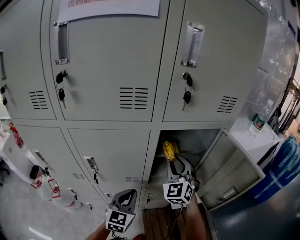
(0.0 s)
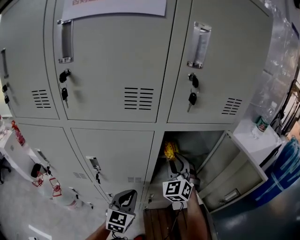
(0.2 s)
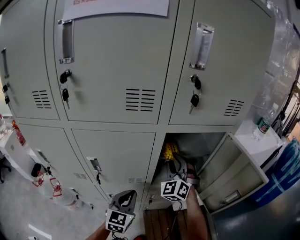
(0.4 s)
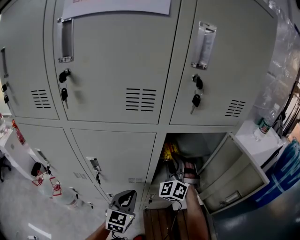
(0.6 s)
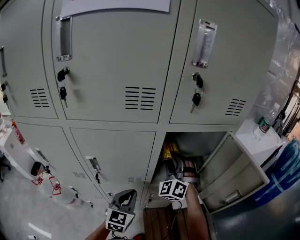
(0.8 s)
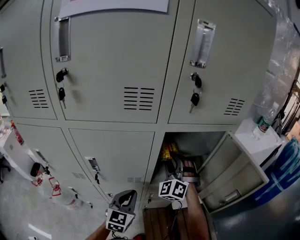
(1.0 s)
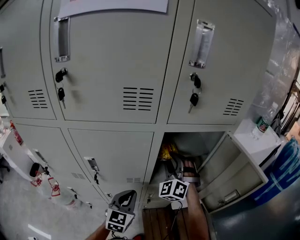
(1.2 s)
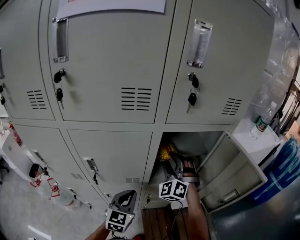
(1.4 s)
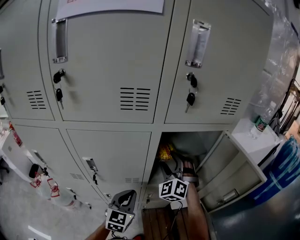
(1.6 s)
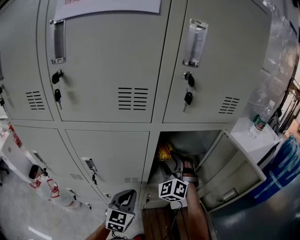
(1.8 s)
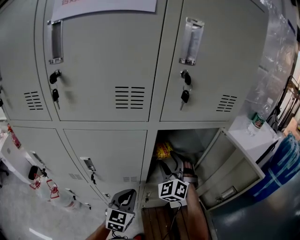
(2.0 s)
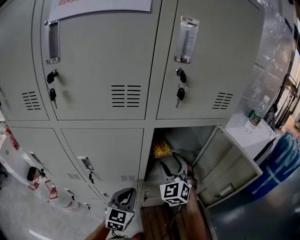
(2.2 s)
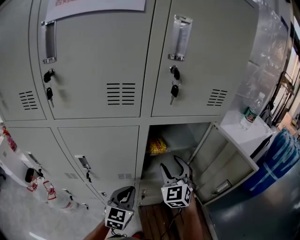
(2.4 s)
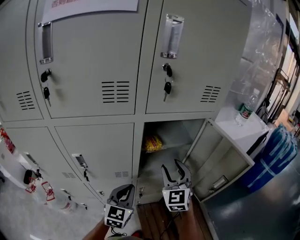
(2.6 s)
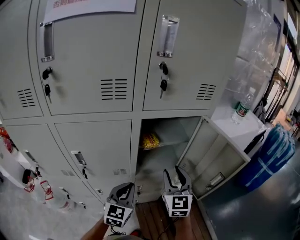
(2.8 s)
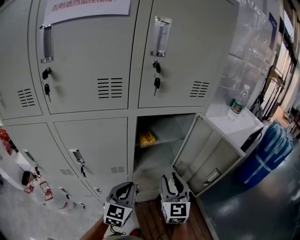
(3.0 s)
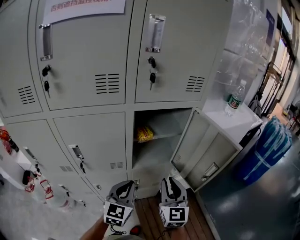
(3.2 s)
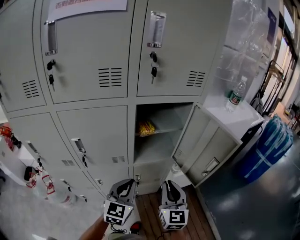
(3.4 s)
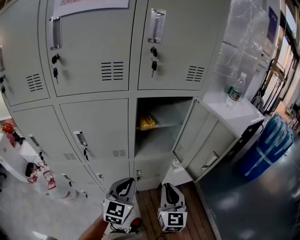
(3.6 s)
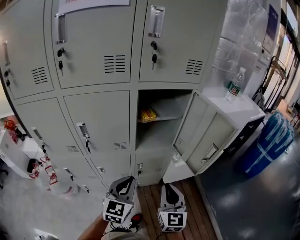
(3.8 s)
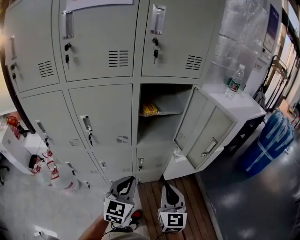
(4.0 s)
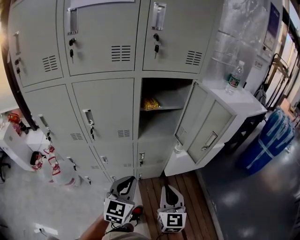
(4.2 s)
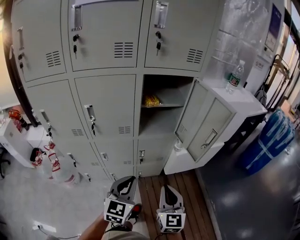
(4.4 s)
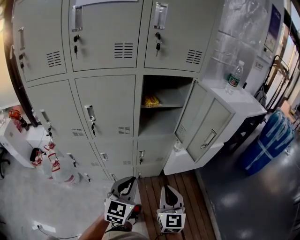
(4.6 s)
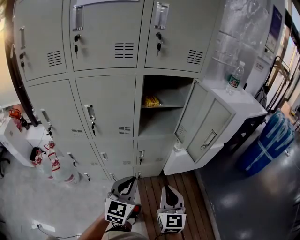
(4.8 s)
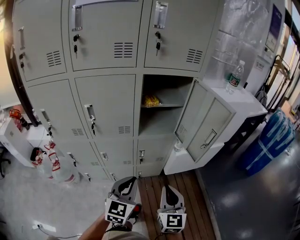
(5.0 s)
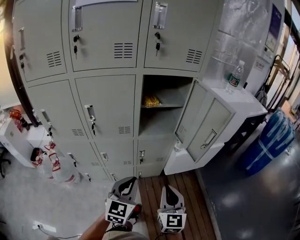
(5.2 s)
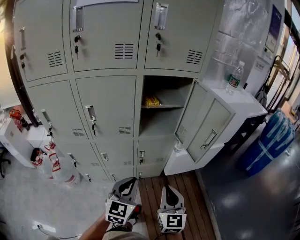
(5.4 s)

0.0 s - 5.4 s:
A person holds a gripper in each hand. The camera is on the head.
0.0 s - 1.4 s: The right gripper rotates about 20 degrees.
1.4 s - 2.8 s: The right gripper goes some 15 cm backward and to the right, and twists approximately 50 degrees clockwise, seen from behind. Meanwhile the left gripper shifts by approximately 5 cm.
2.8 s - 4.0 s: The two grippers go approximately 20 cm backward. The right gripper closes its fingers.
4.0 s - 5.4 s: The left gripper heads backward, covering roughly 5 cm. Meanwhile the right gripper changes place by roughly 5 cm.

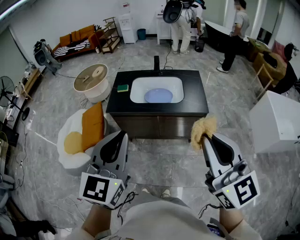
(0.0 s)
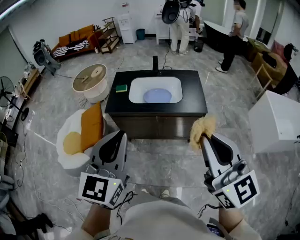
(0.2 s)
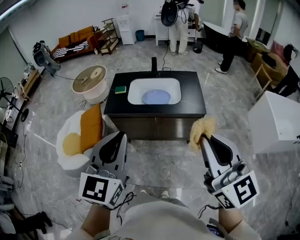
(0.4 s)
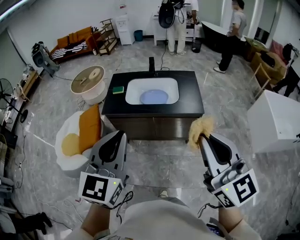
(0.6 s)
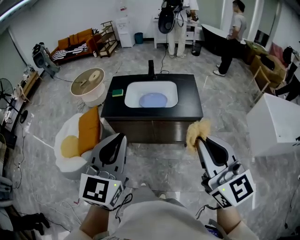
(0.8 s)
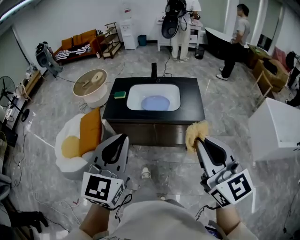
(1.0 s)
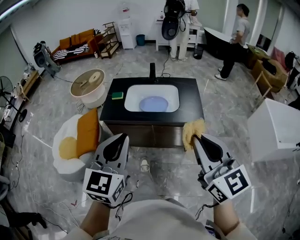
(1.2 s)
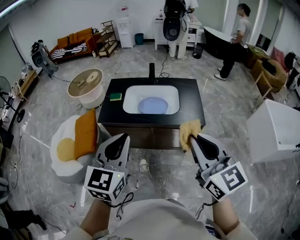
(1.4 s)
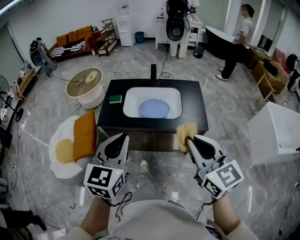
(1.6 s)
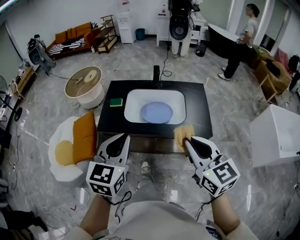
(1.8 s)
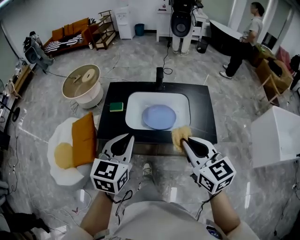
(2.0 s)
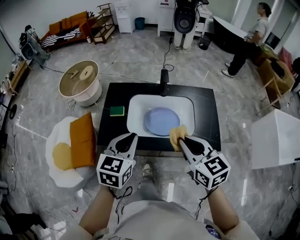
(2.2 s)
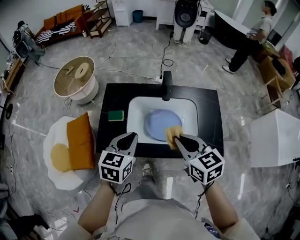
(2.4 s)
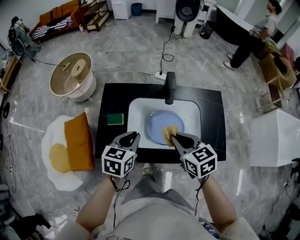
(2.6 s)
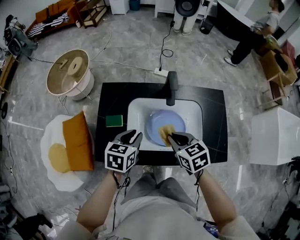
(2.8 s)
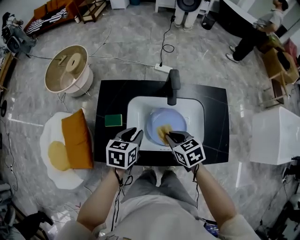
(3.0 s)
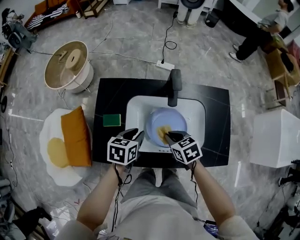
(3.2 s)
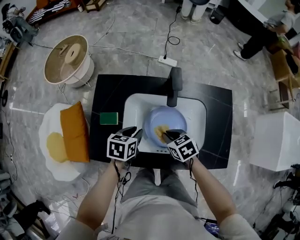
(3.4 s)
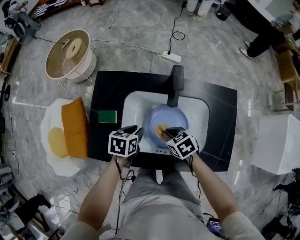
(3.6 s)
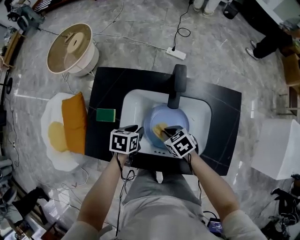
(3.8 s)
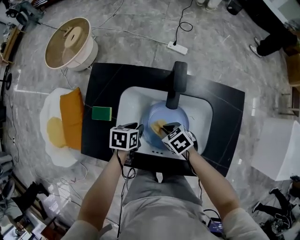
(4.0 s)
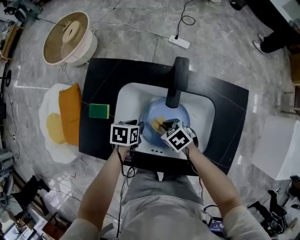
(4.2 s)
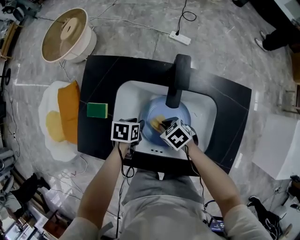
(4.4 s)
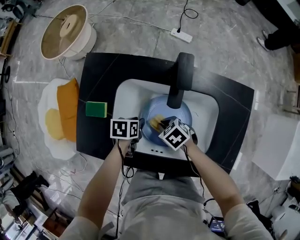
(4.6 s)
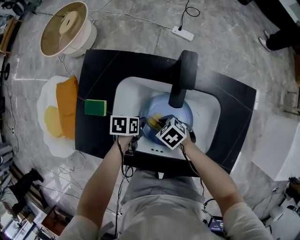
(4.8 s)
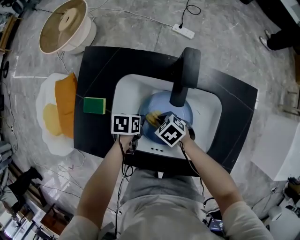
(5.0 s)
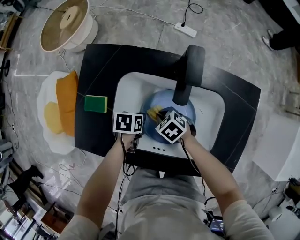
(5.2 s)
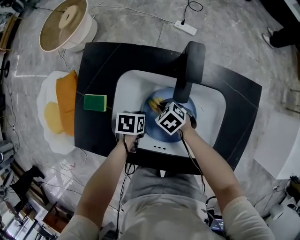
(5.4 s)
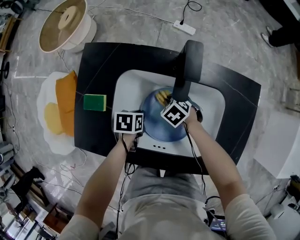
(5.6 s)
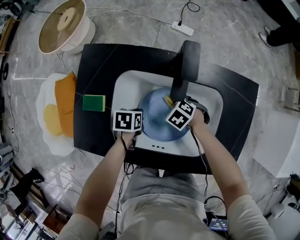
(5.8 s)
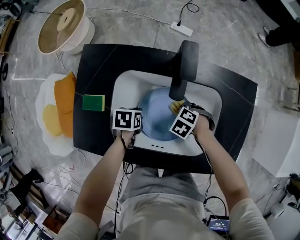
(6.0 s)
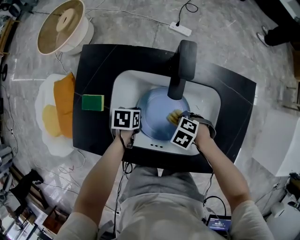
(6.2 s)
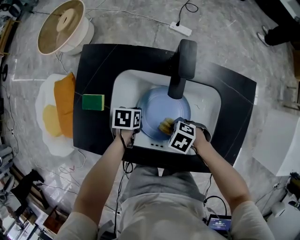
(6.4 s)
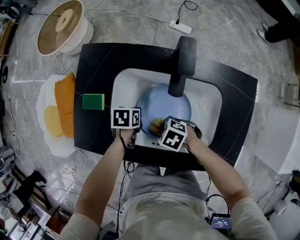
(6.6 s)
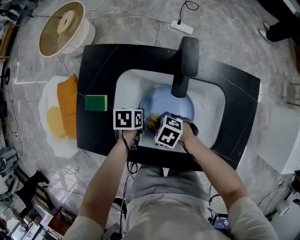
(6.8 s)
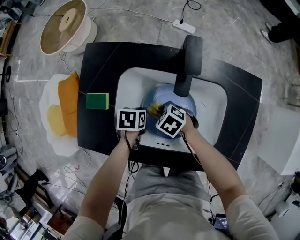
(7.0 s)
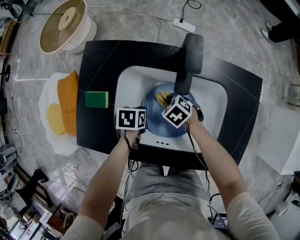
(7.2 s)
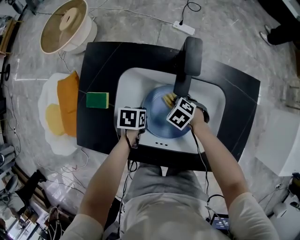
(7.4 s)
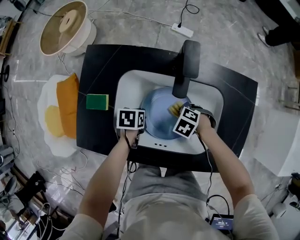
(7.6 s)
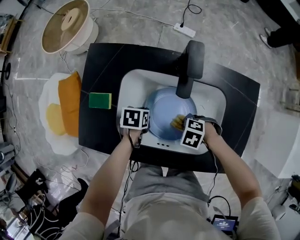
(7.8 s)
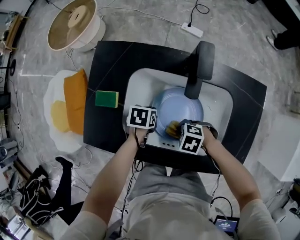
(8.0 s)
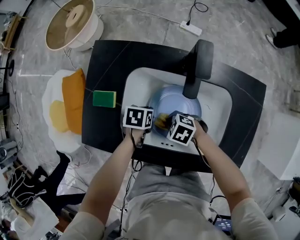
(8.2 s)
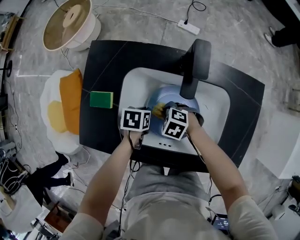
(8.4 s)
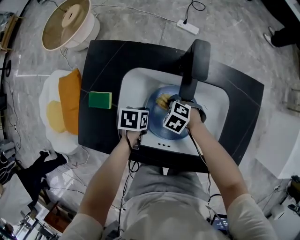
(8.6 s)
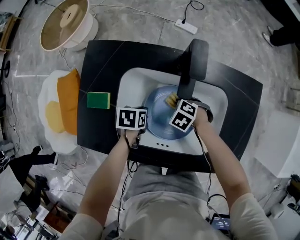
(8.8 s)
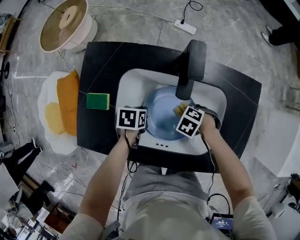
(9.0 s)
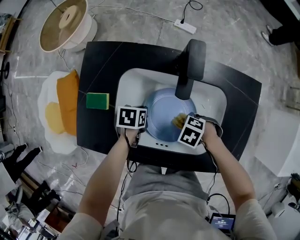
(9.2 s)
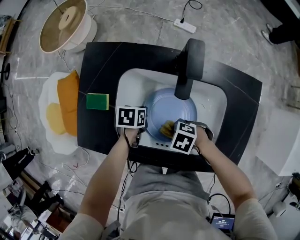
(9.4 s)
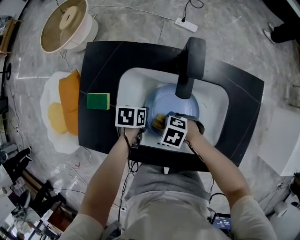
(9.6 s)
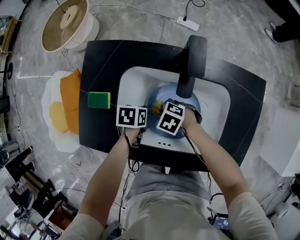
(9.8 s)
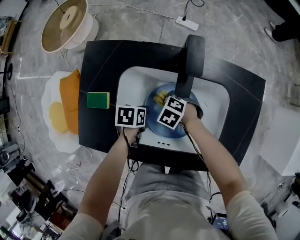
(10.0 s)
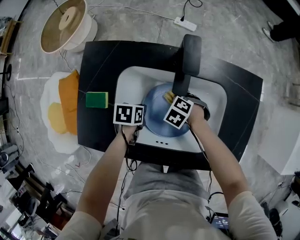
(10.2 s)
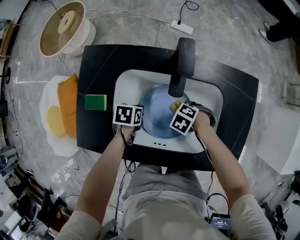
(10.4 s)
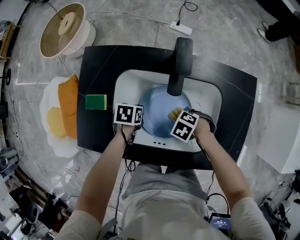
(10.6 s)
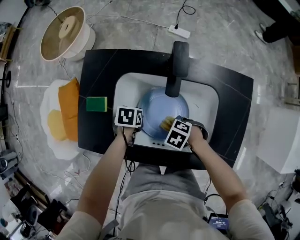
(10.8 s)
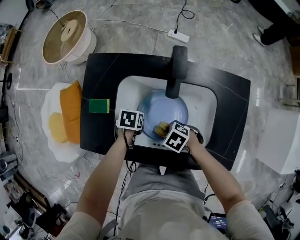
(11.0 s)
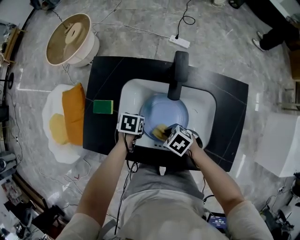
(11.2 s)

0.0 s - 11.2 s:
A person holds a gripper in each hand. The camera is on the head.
0.0 s - 1.6 s: Both grippers move forward and downward, about 20 cm.
1.6 s - 3.2 s: The grippers both shift forward and downward by about 50 cm. The left gripper tilts its fingers some 30 degrees downward, and opens its fingers. Meanwhile the right gripper points its fingers some 50 degrees further downward.
3.2 s - 4.8 s: Both grippers travel together downward, about 20 cm. The left gripper swivels about 30 degrees, while the right gripper rotates approximately 30 degrees.
4.8 s - 6.4 s: The right gripper changes place by approximately 10 cm; the left gripper closes up.
9.6 s - 11.2 s: The right gripper moves upward, about 5 cm.

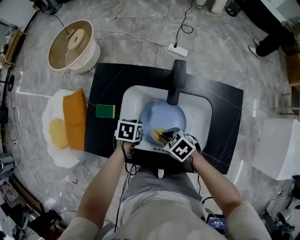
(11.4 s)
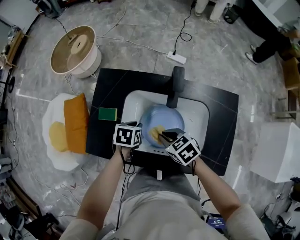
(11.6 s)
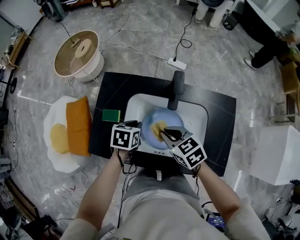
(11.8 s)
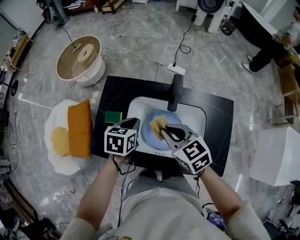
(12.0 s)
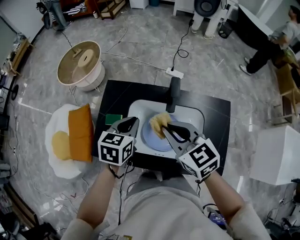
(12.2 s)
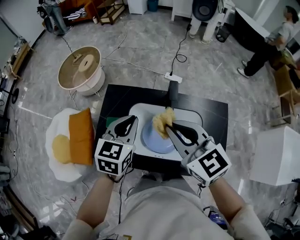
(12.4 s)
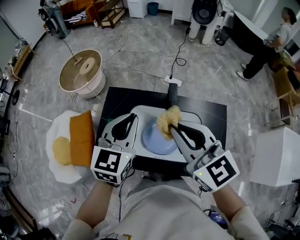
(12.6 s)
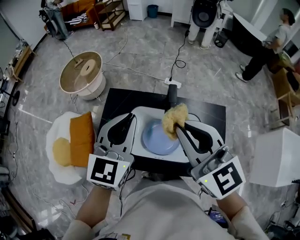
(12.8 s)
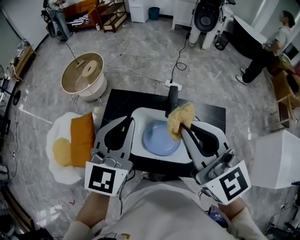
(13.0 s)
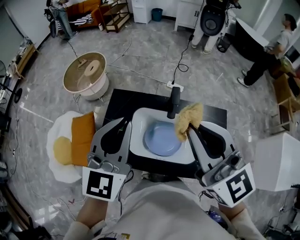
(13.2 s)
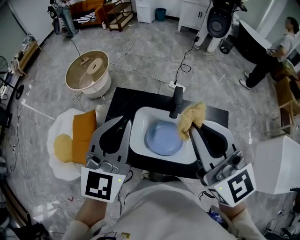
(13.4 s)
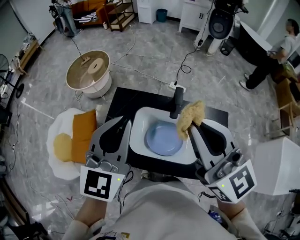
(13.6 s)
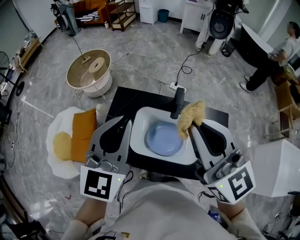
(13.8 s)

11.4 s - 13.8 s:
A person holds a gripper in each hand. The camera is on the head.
11.4 s - 12.6 s: Both grippers move upward, roughly 40 cm. The left gripper tilts its fingers approximately 50 degrees upward. The right gripper points its fingers some 50 degrees further upward.
12.6 s - 13.8 s: The grippers both shift upward by approximately 10 cm.

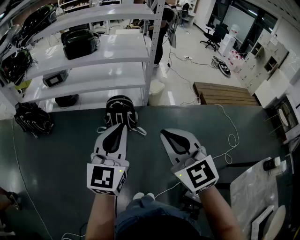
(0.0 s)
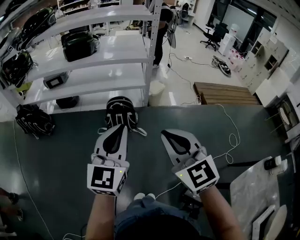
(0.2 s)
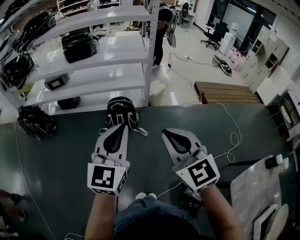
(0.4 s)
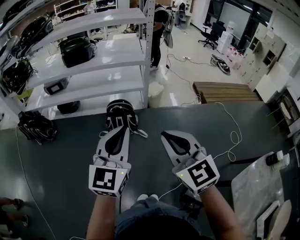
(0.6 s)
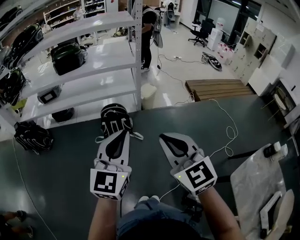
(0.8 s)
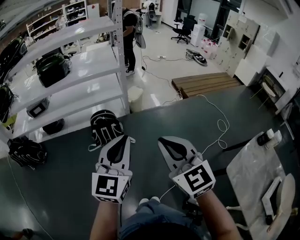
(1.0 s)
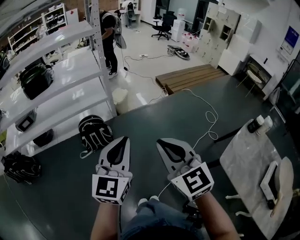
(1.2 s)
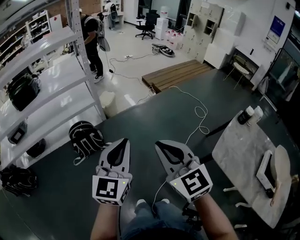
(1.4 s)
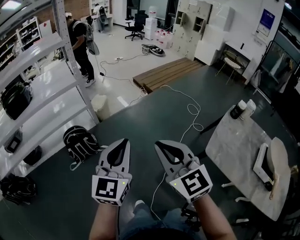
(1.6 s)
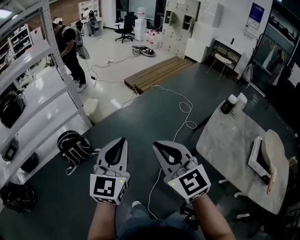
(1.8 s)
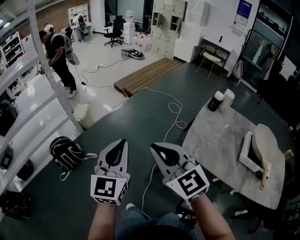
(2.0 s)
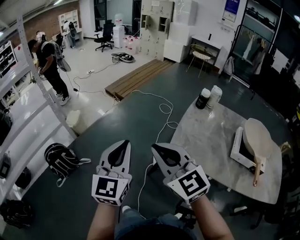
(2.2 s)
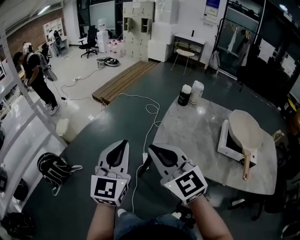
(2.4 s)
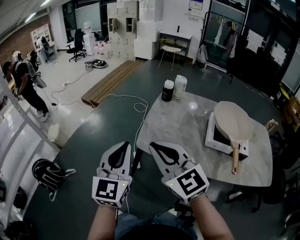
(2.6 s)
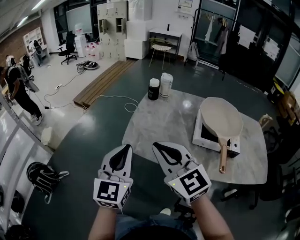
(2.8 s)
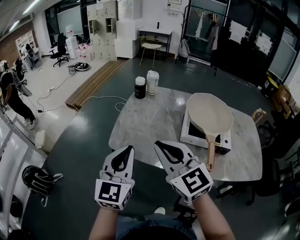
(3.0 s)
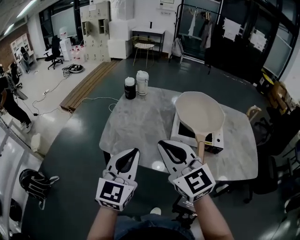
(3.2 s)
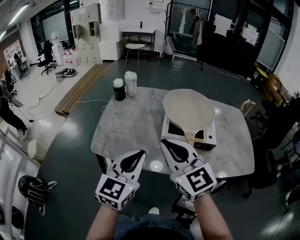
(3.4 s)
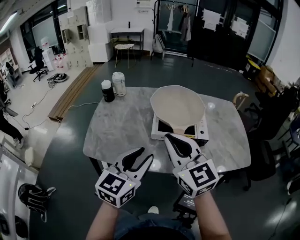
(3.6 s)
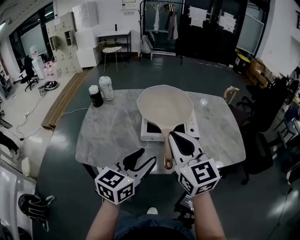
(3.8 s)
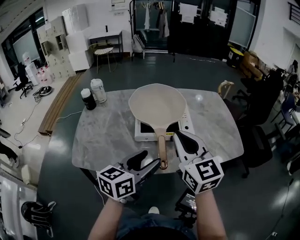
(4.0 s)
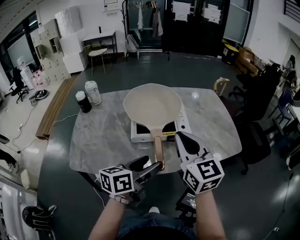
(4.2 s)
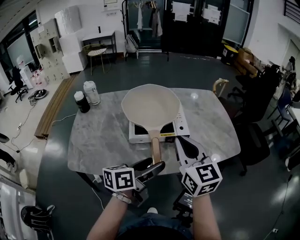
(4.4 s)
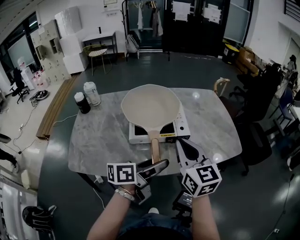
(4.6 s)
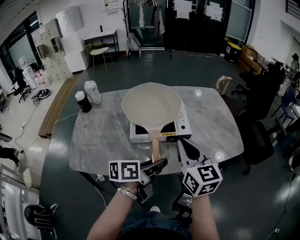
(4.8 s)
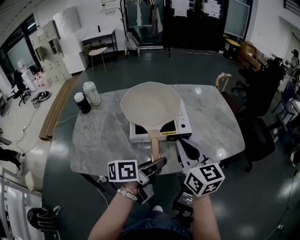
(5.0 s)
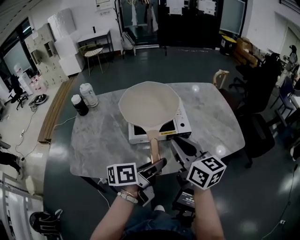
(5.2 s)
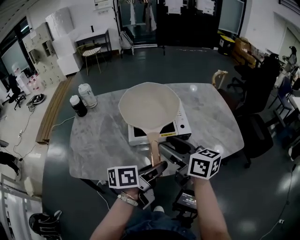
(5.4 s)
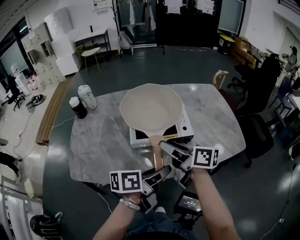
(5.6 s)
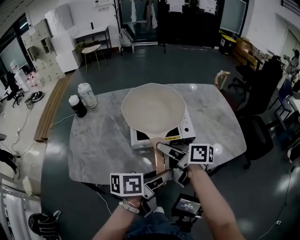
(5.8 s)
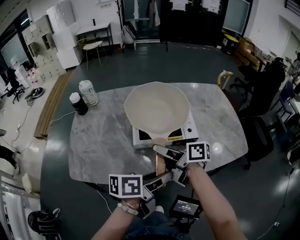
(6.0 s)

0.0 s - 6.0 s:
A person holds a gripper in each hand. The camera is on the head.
0.0 s - 1.6 s: The left gripper moves about 20 cm, and turns by roughly 30 degrees; the right gripper changes place by approximately 20 cm, and turns by roughly 30 degrees.
1.6 s - 3.0 s: Both grippers are carried roughly 50 cm. The left gripper changes its angle by roughly 30 degrees; the right gripper changes its angle by approximately 30 degrees.
3.0 s - 4.4 s: The right gripper shifts by approximately 30 cm, and rotates some 40 degrees. Meanwhile the left gripper changes place by some 35 cm, swivels about 70 degrees, and opens.
4.4 s - 6.0 s: The left gripper closes its fingers, while the right gripper heads downward and to the left, covering about 15 cm, rotates around the line of its fingers by roughly 60 degrees, clockwise from behind, and opens.
